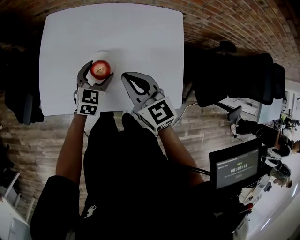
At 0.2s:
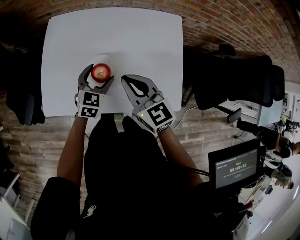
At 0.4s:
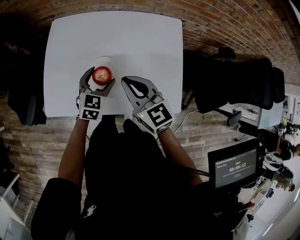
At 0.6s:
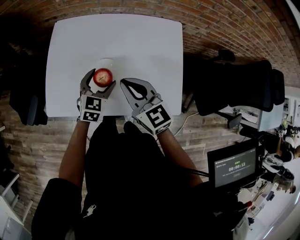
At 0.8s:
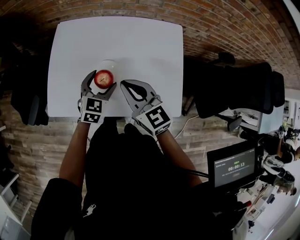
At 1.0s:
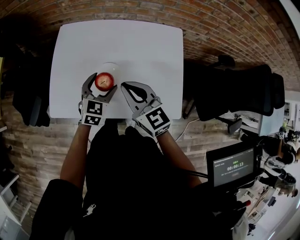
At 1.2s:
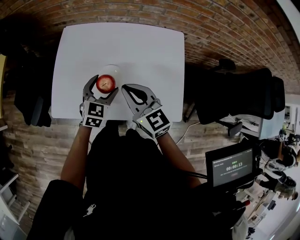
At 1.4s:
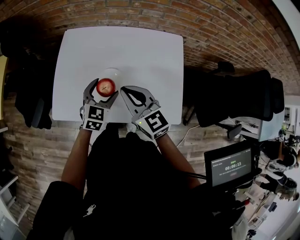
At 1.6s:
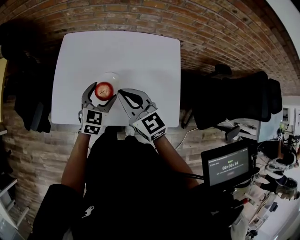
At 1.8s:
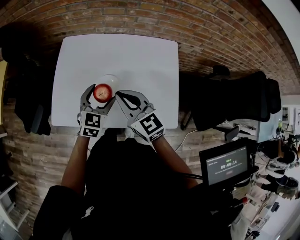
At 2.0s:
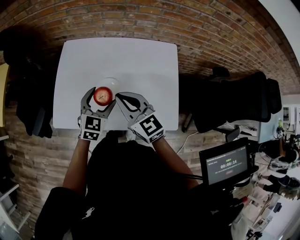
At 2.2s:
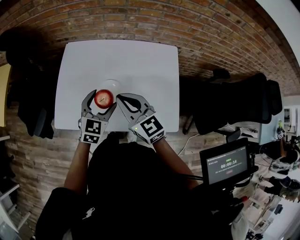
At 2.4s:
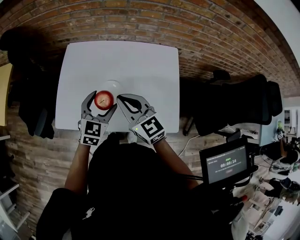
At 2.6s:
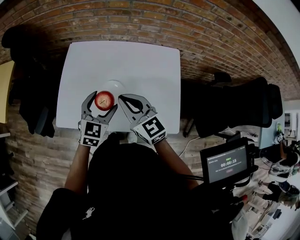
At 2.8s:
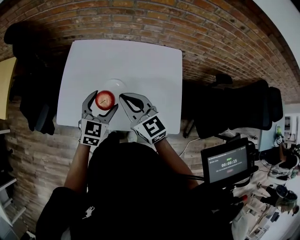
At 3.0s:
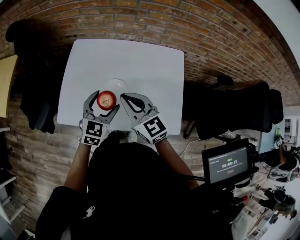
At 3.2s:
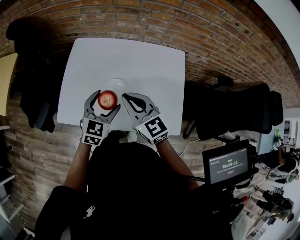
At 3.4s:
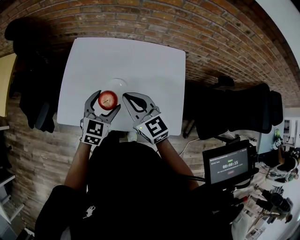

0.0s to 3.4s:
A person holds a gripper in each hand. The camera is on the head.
0.0s to 1.6s: The left gripper shifts some 5 cm upward.
1.6s to 3.4s: The left gripper changes place by roughly 5 cm.

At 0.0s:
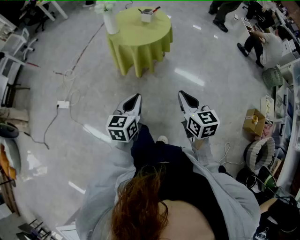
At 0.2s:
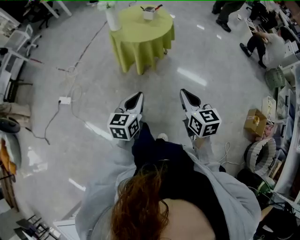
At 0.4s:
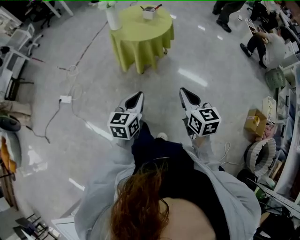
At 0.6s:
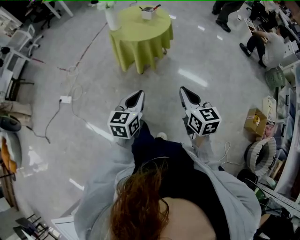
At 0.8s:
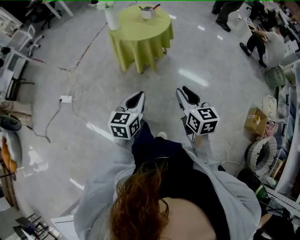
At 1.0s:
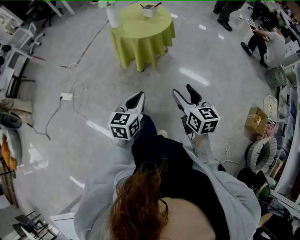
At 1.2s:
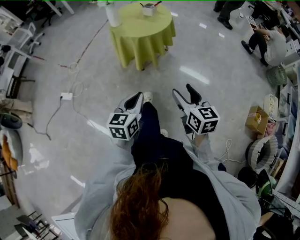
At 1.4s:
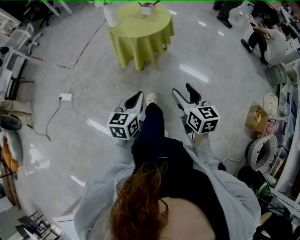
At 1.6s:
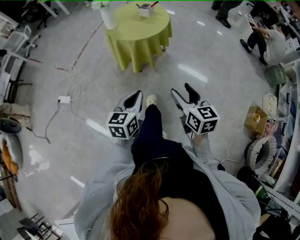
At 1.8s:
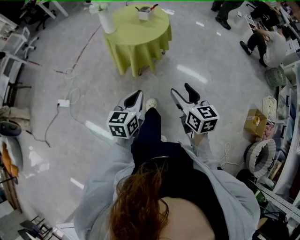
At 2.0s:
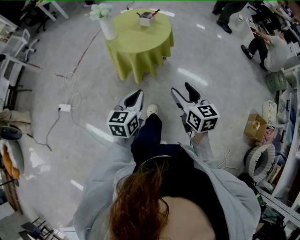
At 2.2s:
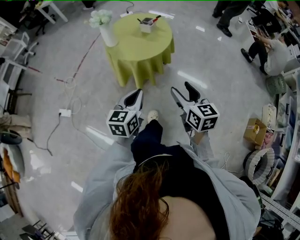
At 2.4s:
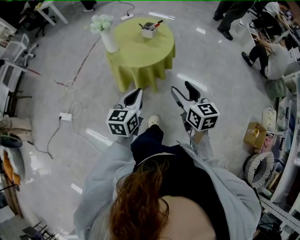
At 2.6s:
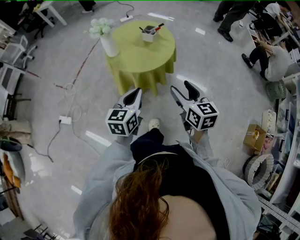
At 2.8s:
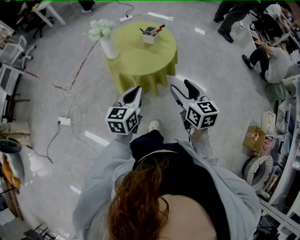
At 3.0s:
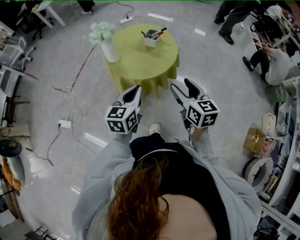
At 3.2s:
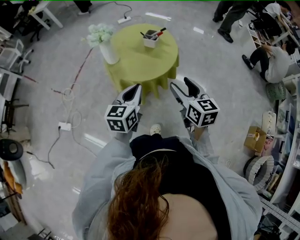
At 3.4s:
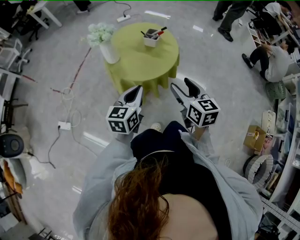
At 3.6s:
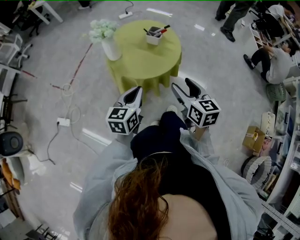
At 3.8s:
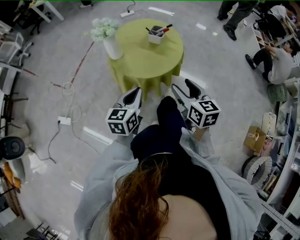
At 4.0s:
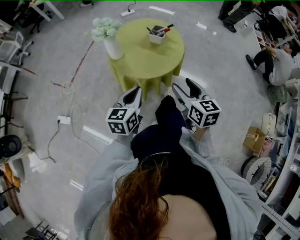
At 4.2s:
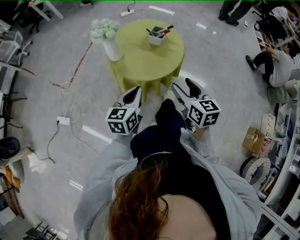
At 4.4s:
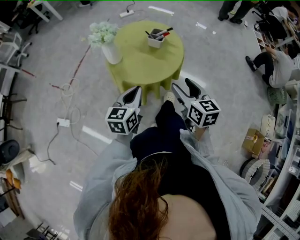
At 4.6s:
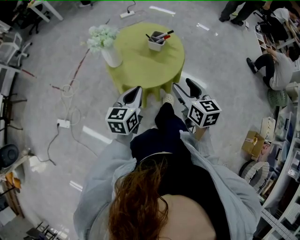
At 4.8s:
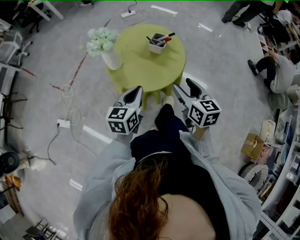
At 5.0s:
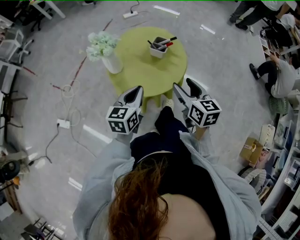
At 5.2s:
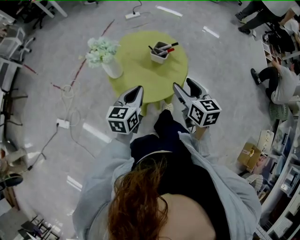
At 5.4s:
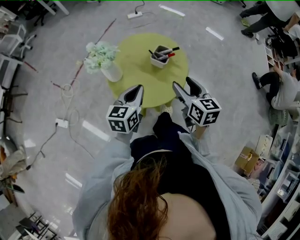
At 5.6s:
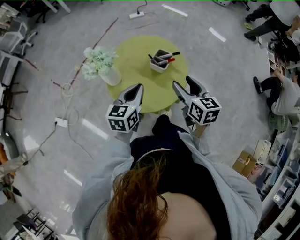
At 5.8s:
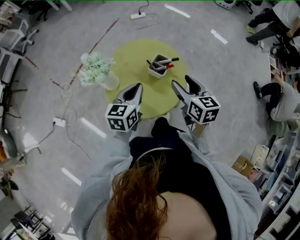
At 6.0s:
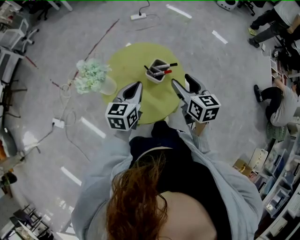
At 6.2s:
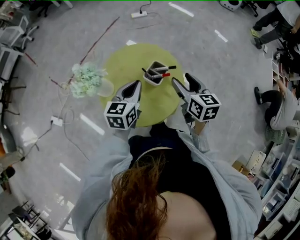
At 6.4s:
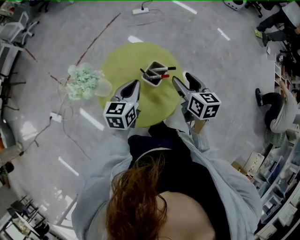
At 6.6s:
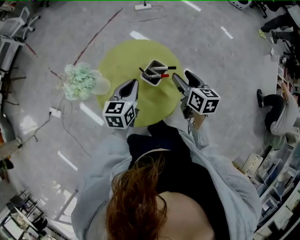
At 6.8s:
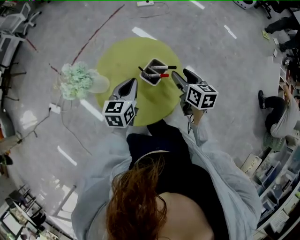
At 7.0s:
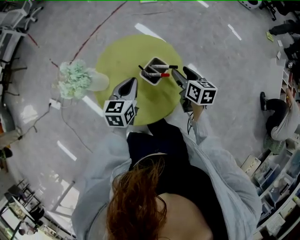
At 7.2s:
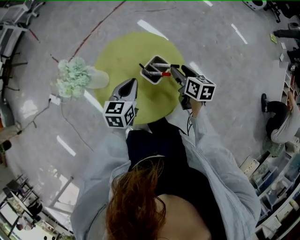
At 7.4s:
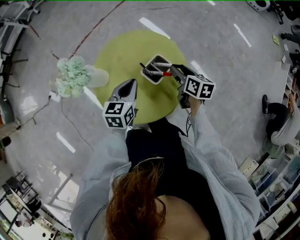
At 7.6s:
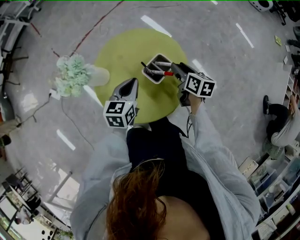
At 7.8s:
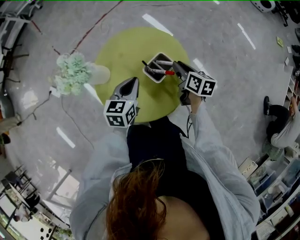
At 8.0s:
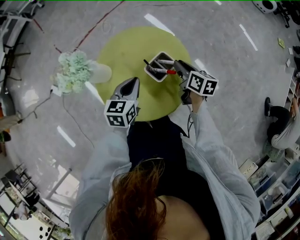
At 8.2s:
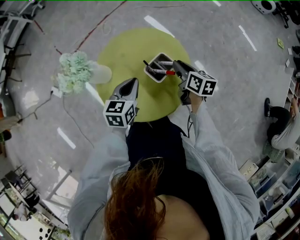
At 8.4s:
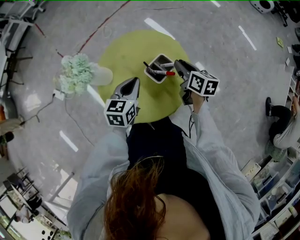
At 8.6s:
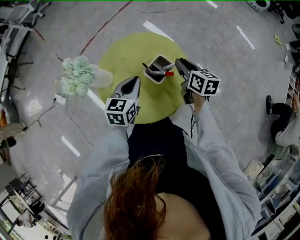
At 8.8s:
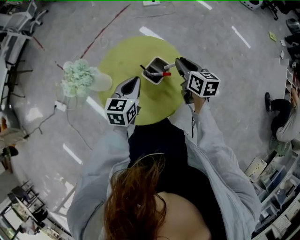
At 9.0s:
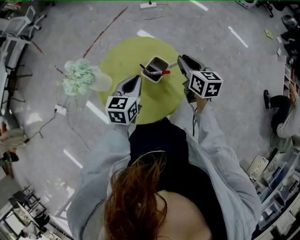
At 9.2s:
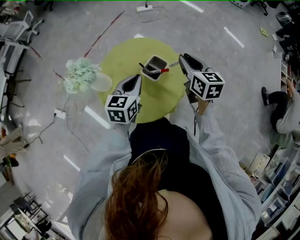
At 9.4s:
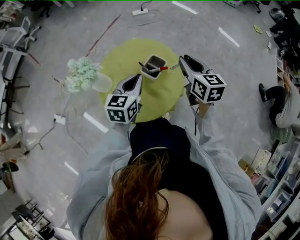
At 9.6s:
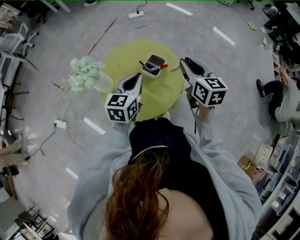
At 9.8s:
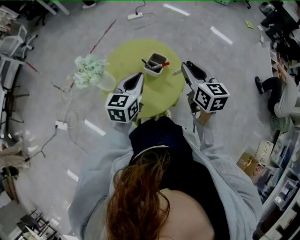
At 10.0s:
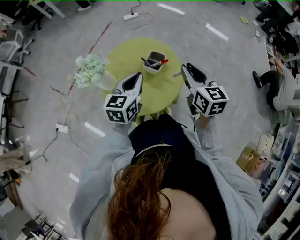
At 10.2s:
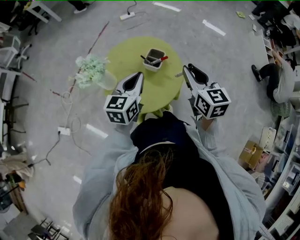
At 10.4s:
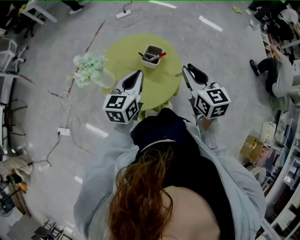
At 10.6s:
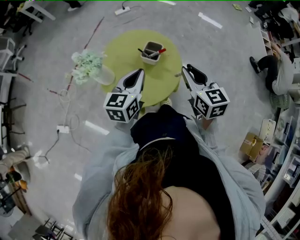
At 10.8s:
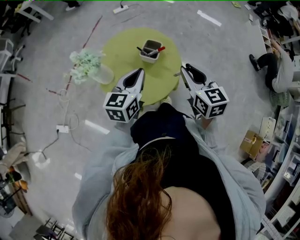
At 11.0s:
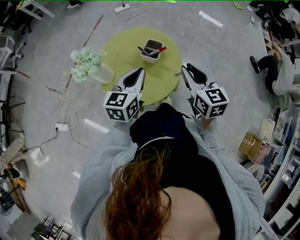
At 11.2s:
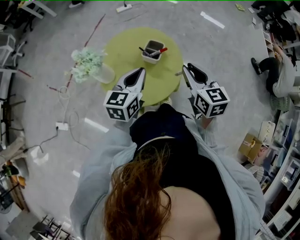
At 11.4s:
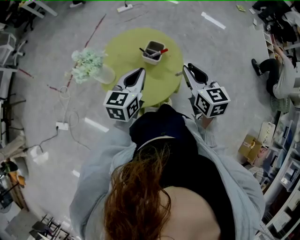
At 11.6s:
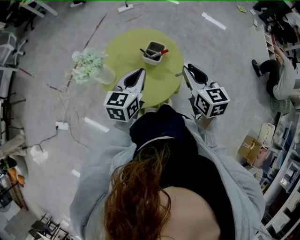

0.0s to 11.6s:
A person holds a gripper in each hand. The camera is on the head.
0.0s to 1.4s: The right gripper opens its fingers; the left gripper ends up roughly 5 cm from where it was.
1.4s to 2.8s: The two grippers go approximately 30 cm forward.
2.8s to 4.4s: Both grippers move forward, some 10 cm.
4.4s to 5.8s: The grippers both shift forward by roughly 20 cm.
5.8s to 7.2s: The right gripper moves forward and downward, about 20 cm; the left gripper heads downward and forward, covering some 10 cm.
7.2s to 8.8s: The right gripper heads upward, covering roughly 5 cm, and closes.
8.8s to 10.2s: The left gripper goes approximately 10 cm upward and backward; the right gripper is displaced backward and upward by roughly 20 cm, and swivels some 30 degrees.
10.2s to 11.6s: The grippers make only small movements.

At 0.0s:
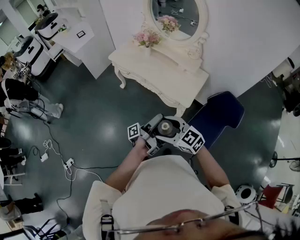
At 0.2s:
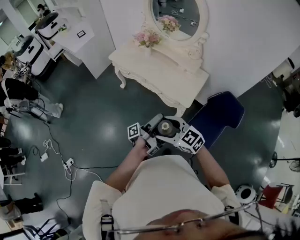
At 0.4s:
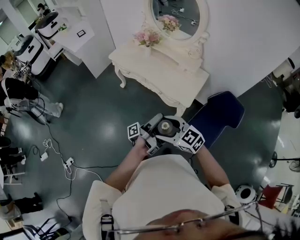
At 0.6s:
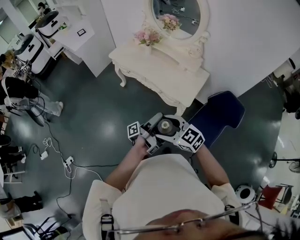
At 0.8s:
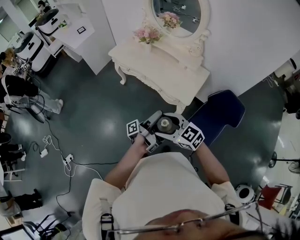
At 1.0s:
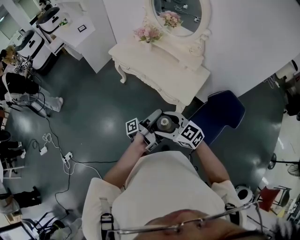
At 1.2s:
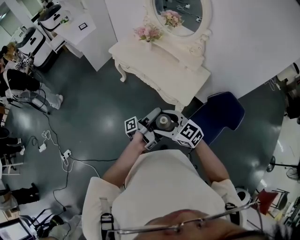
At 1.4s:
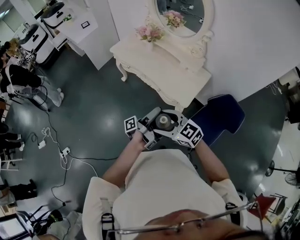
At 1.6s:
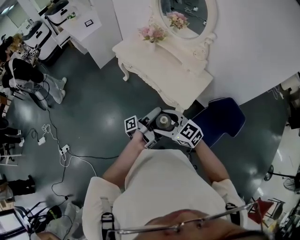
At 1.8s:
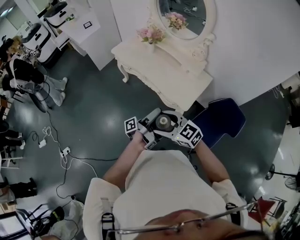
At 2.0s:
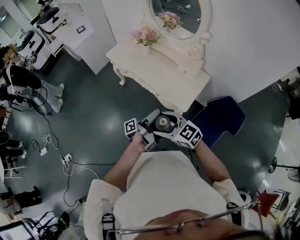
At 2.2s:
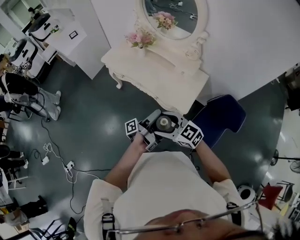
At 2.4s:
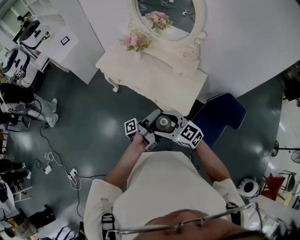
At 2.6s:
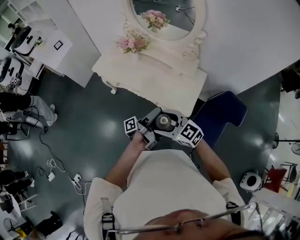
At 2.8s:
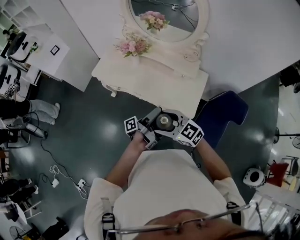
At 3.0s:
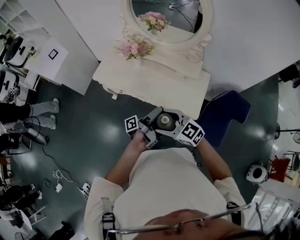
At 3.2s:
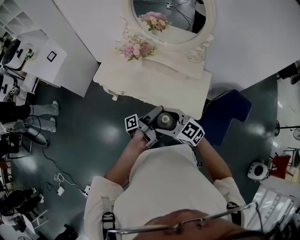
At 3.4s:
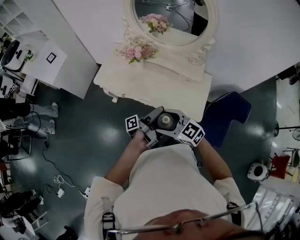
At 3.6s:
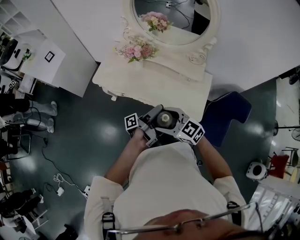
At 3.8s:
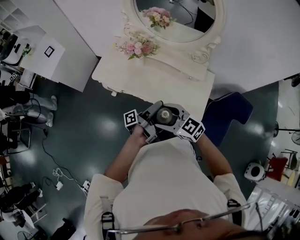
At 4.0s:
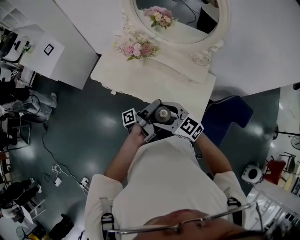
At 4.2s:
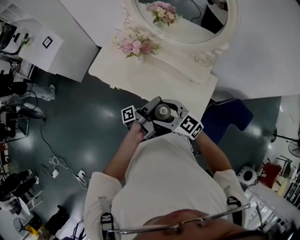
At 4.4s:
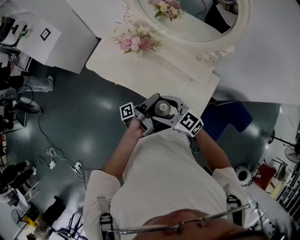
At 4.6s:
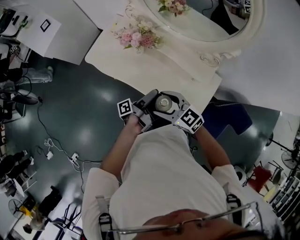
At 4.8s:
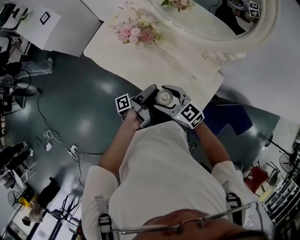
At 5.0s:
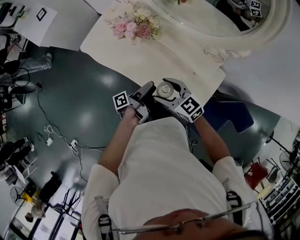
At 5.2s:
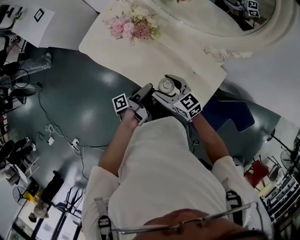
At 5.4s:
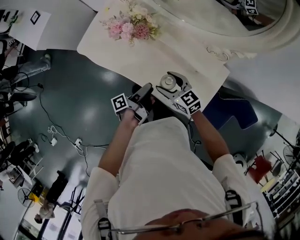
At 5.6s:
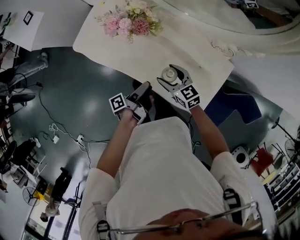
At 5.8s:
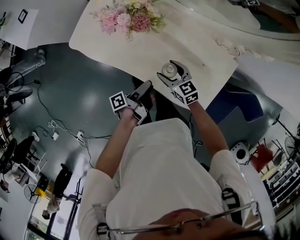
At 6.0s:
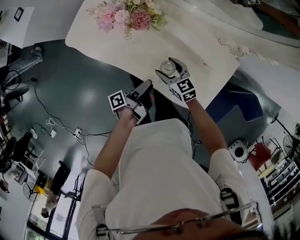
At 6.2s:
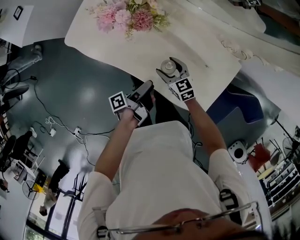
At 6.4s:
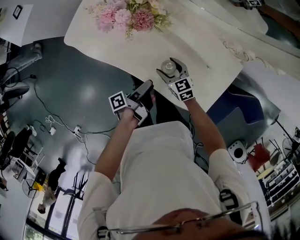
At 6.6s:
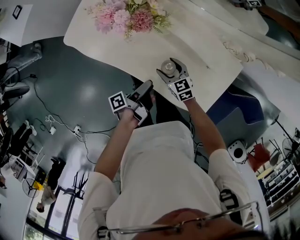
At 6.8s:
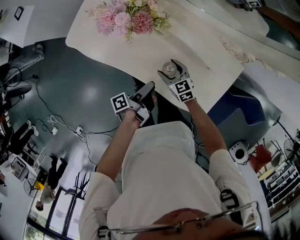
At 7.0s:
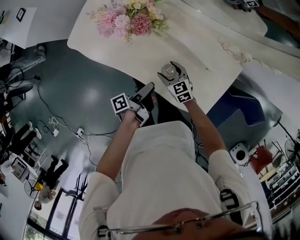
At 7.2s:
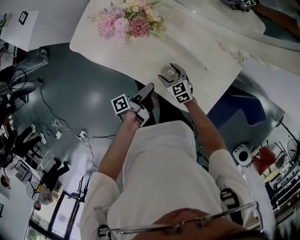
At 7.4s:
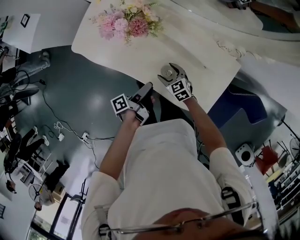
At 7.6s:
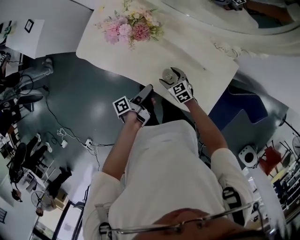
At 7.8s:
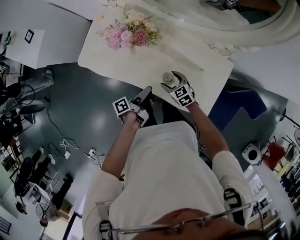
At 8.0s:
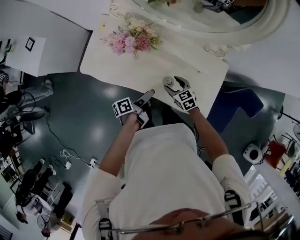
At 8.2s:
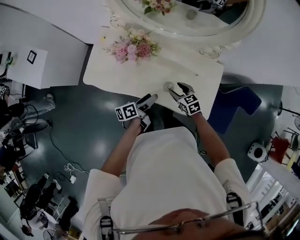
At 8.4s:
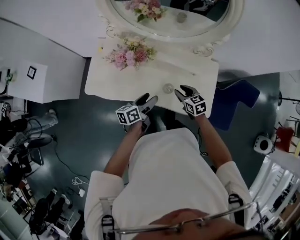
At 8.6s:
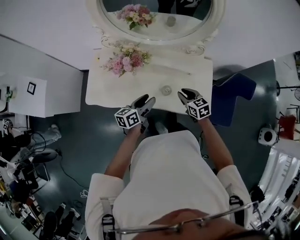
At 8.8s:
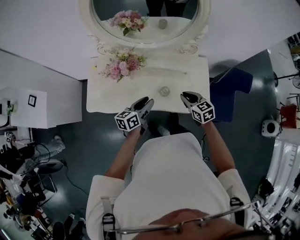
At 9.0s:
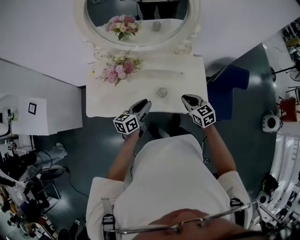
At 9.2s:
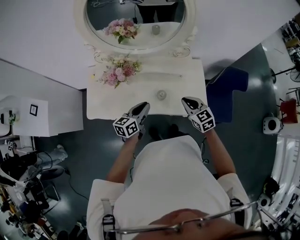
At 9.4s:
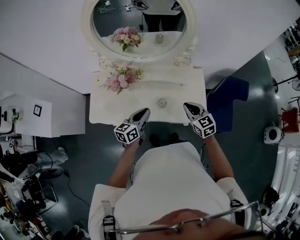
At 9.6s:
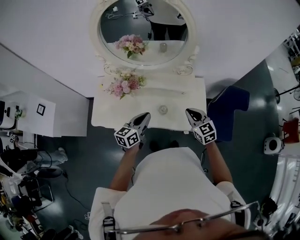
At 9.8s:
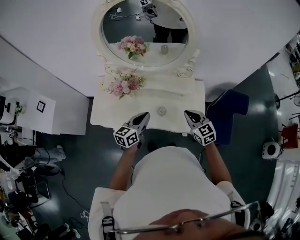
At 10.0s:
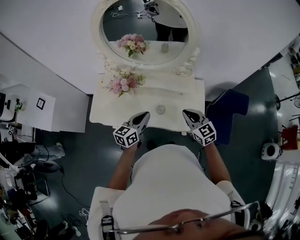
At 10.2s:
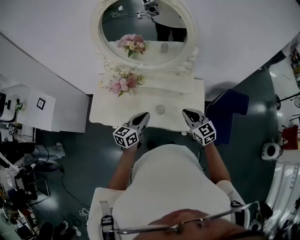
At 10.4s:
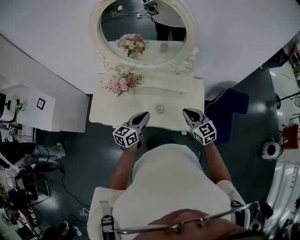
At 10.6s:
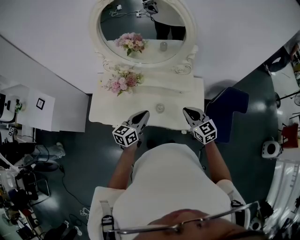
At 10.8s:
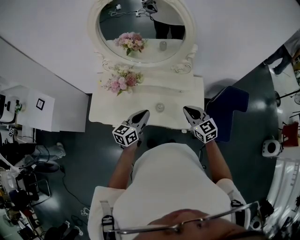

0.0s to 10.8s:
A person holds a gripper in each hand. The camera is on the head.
0.0s to 1.6s: The right gripper moves roughly 5 cm.
1.6s to 3.0s: The right gripper moves about 25 cm.
3.0s to 4.6s: The right gripper changes place by some 20 cm.
4.6s to 6.2s: The right gripper shifts approximately 25 cm downward, and changes its angle by about 30 degrees.
7.8s to 9.2s: The right gripper heads upward, covering about 25 cm, rotates roughly 30 degrees, and closes its fingers.
9.2s to 10.8s: The right gripper shifts roughly 5 cm upward.
